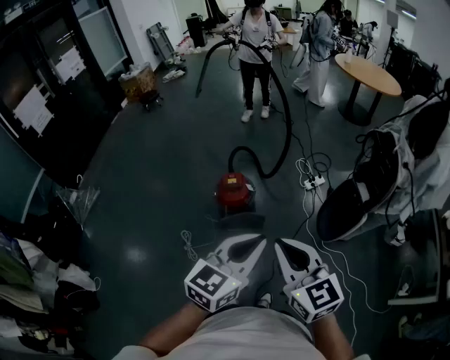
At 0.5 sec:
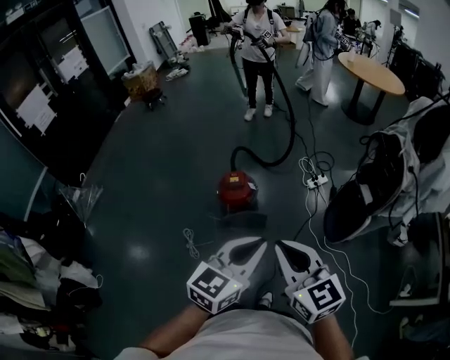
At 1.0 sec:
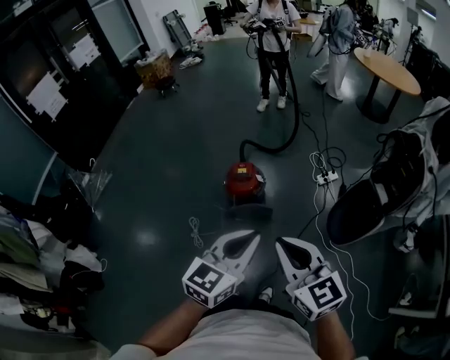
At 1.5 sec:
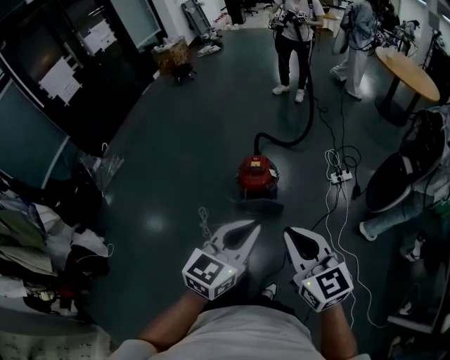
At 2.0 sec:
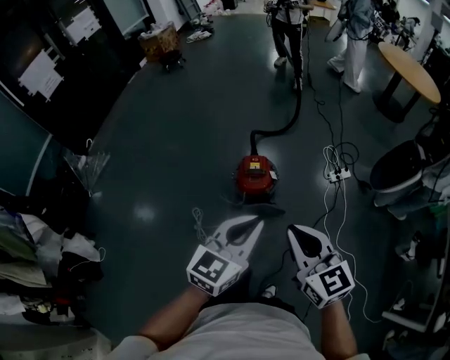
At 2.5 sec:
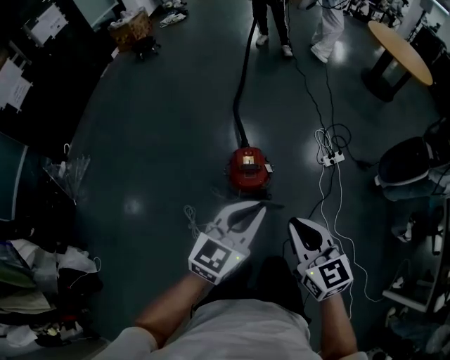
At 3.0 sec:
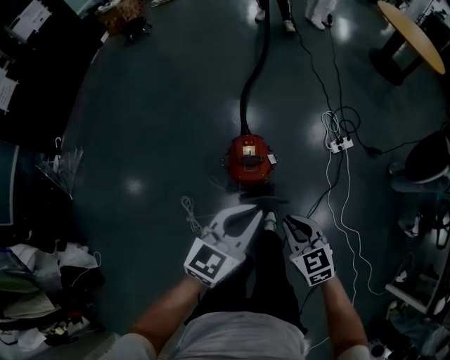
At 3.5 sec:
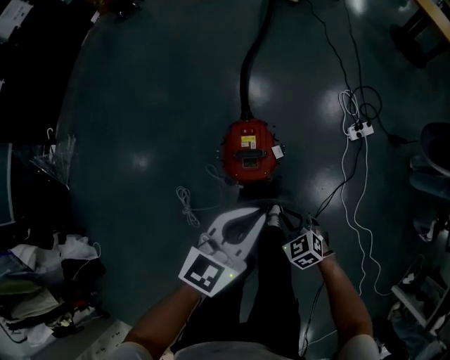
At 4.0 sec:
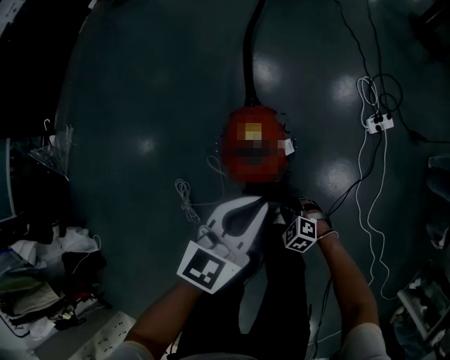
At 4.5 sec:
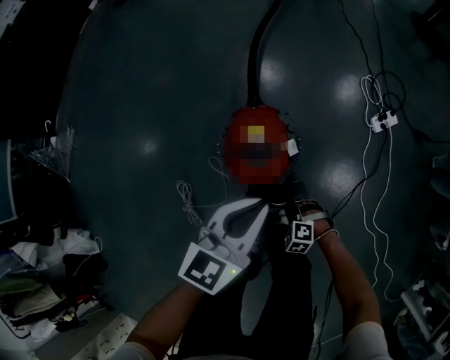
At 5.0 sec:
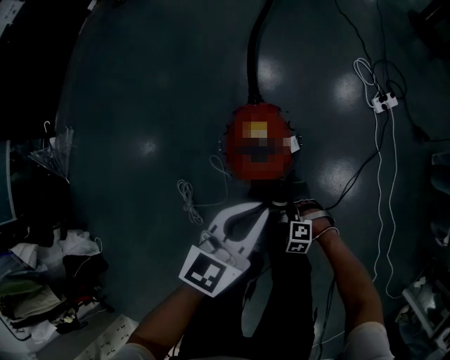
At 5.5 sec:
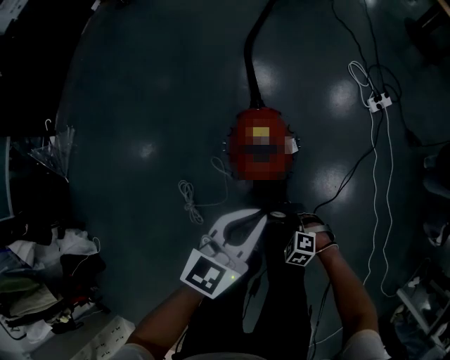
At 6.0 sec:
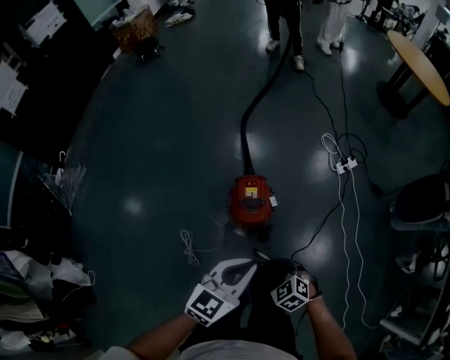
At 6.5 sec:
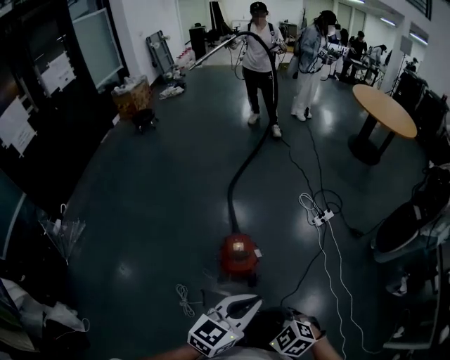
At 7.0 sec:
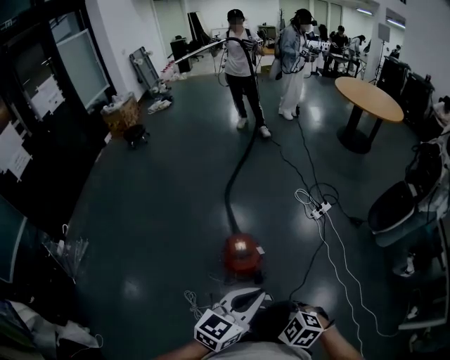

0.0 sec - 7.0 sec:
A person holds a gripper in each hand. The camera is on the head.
0.0 sec - 2.0 sec: The left gripper shifts some 20 cm forward, to the left and downward. The right gripper goes some 15 cm forward and downward.
2.0 sec - 3.5 sec: The two grippers go about 40 cm downward and forward. The right gripper angles its fingers downward, by approximately 40 degrees.
3.5 sec - 5.0 sec: The left gripper shifts some 15 cm downward, while the right gripper is displaced downward by roughly 25 cm, and turns by roughly 50 degrees.
5.0 sec - 7.0 sec: The right gripper shifts some 60 cm upward, and changes its angle by approximately 40 degrees. Meanwhile the left gripper heads upward, covering approximately 35 cm.

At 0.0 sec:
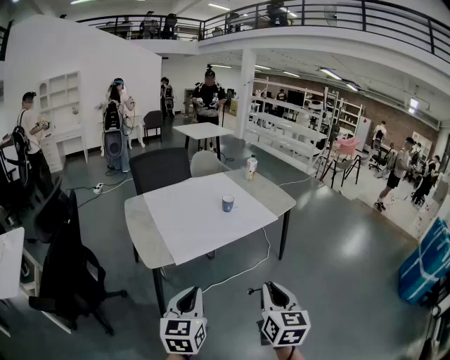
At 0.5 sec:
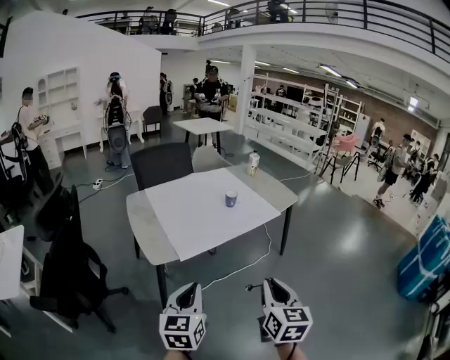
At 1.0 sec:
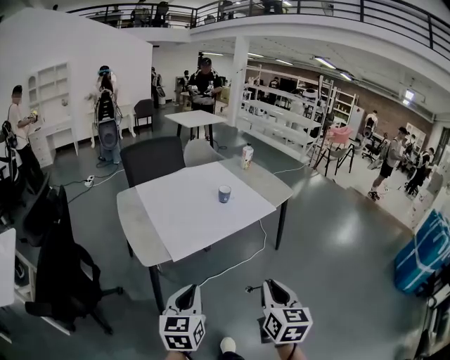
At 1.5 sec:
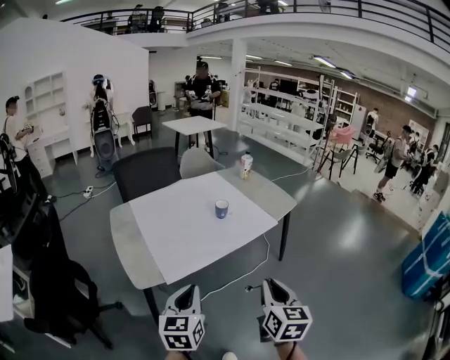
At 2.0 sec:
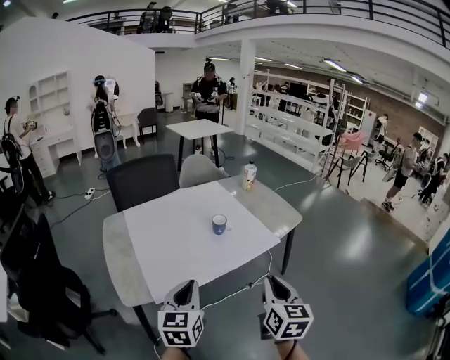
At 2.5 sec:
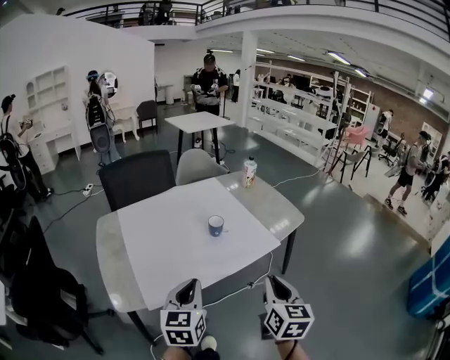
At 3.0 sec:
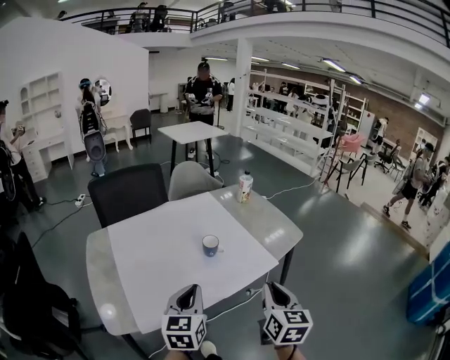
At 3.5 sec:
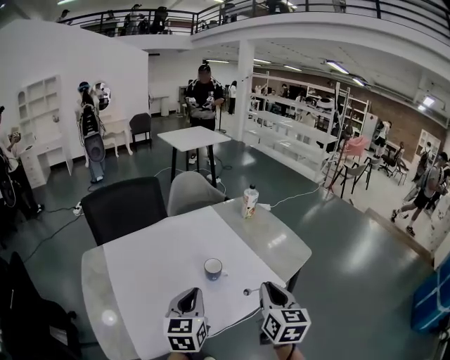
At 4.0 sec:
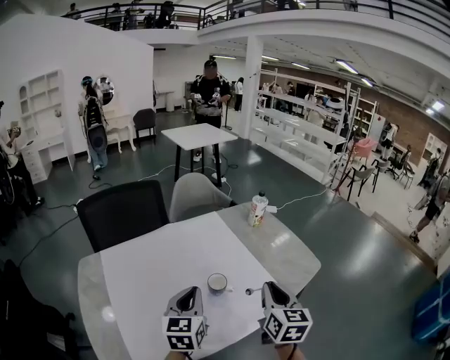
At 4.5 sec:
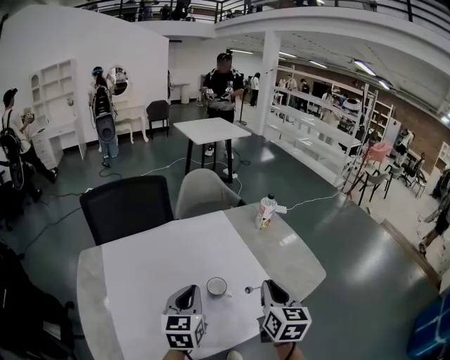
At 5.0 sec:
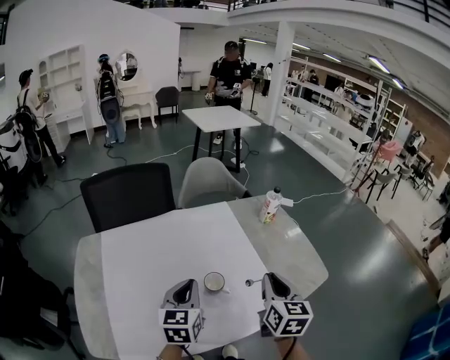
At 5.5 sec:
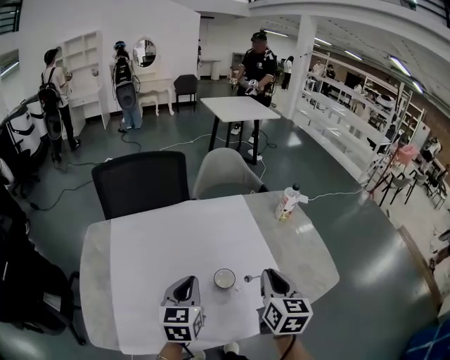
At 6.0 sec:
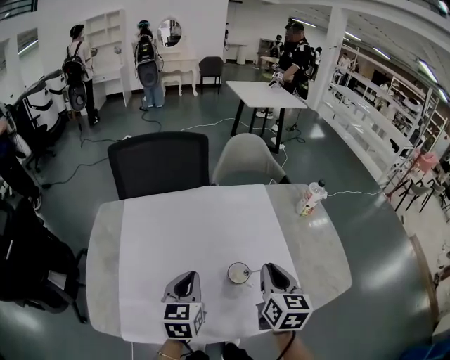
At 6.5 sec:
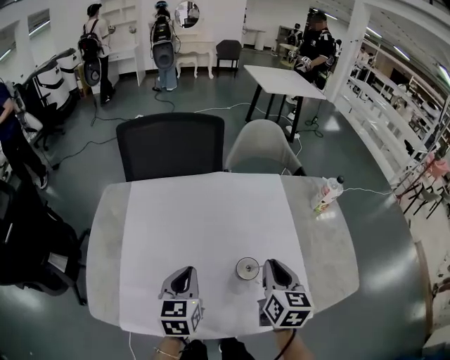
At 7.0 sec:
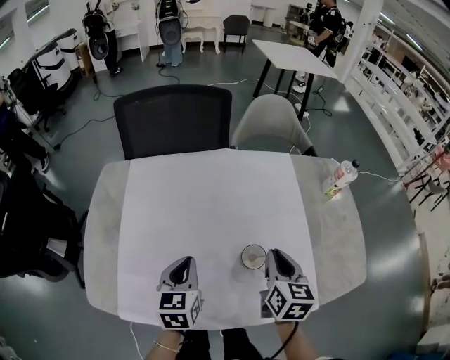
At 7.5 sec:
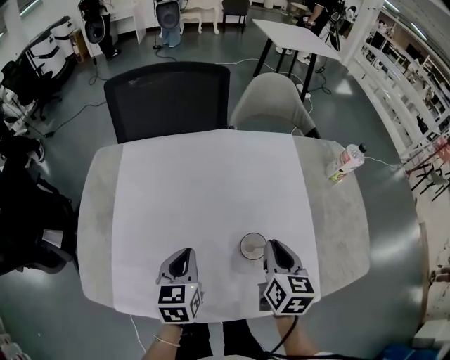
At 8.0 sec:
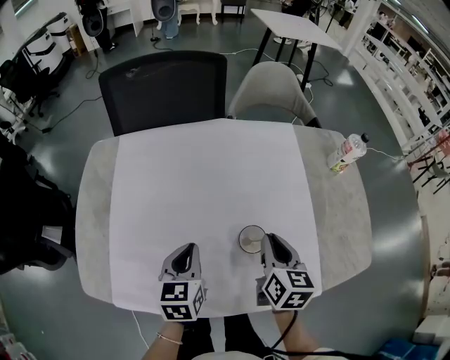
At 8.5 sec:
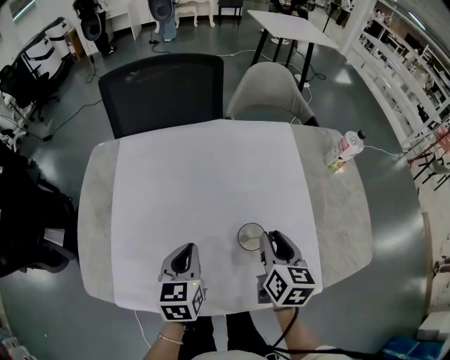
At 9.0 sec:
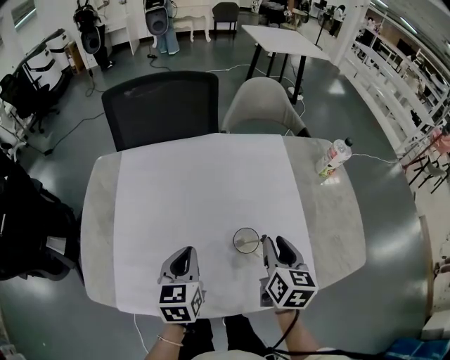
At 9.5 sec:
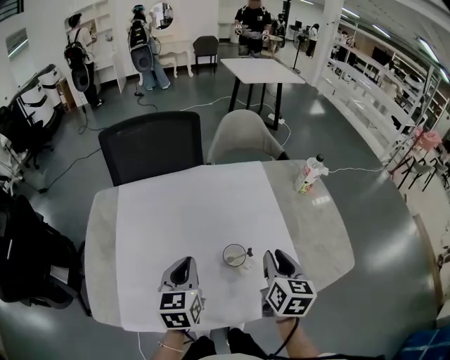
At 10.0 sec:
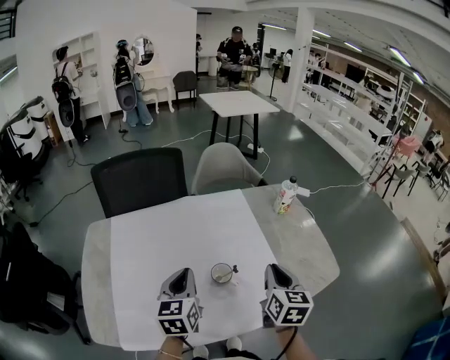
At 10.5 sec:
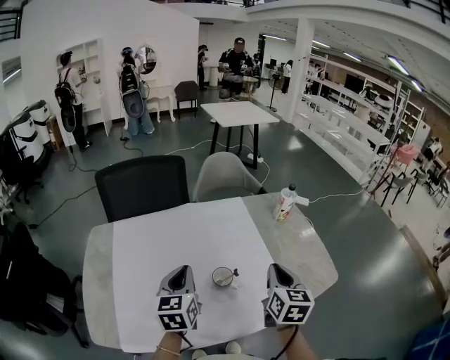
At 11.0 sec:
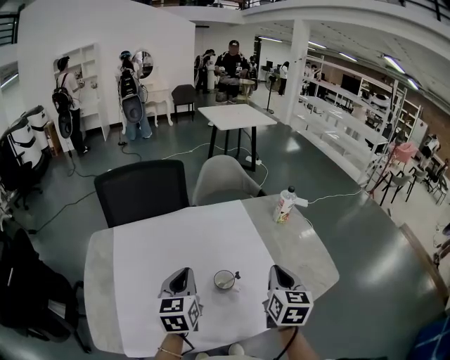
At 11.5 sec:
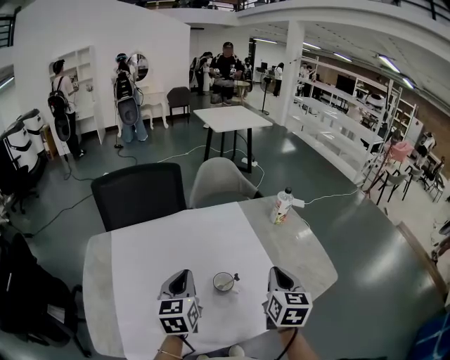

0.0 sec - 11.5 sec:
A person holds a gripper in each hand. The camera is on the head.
0.0 sec - 2.0 sec: The grippers both shift forward by roughly 25 cm.
2.0 sec - 4.0 sec: Both grippers move forward, about 30 cm.
4.0 sec - 6.0 sec: The left gripper is displaced downward and to the left by approximately 10 cm, and turns by about 20 degrees, while the right gripper moves forward, to the left and downward, approximately 15 cm, and swivels about 20 degrees.
6.0 sec - 7.5 sec: Both grippers travel together downward, about 10 cm.
7.5 sec - 9.5 sec: The right gripper travels to the right and upward by roughly 10 cm. The left gripper shifts some 10 cm upward.
9.5 sec - 11.5 sec: The left gripper moves roughly 5 cm. The right gripper is displaced upward by approximately 5 cm, and closes up.

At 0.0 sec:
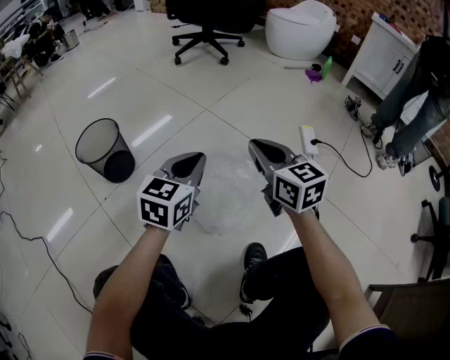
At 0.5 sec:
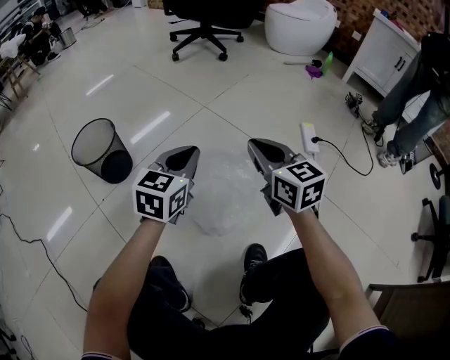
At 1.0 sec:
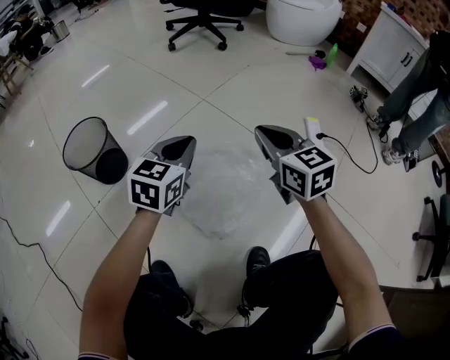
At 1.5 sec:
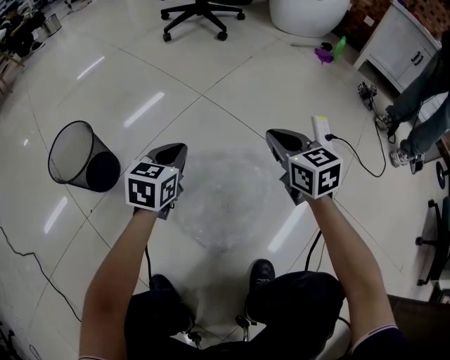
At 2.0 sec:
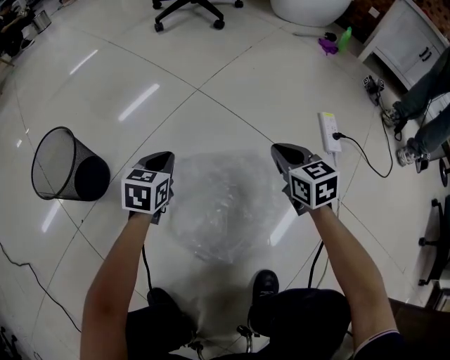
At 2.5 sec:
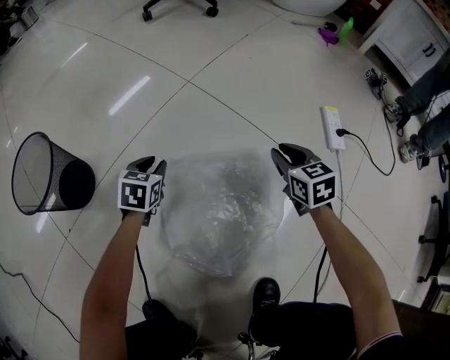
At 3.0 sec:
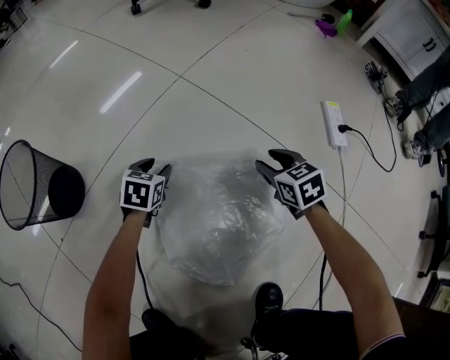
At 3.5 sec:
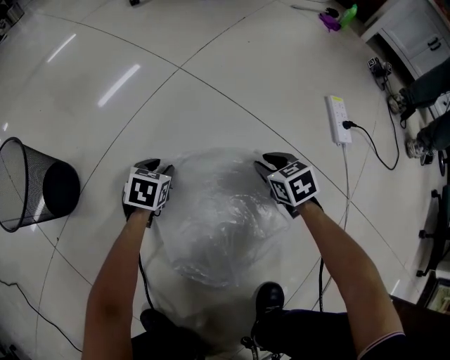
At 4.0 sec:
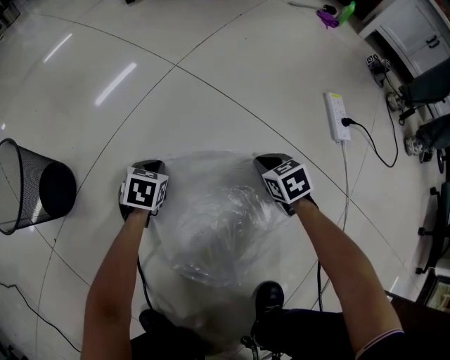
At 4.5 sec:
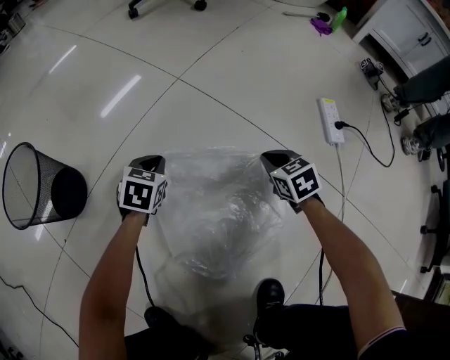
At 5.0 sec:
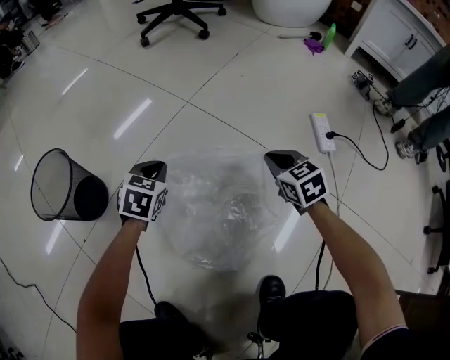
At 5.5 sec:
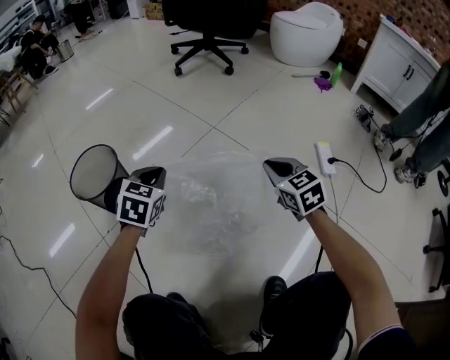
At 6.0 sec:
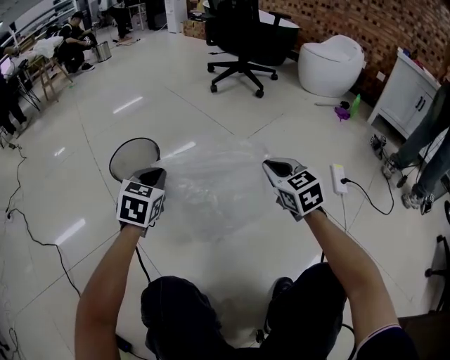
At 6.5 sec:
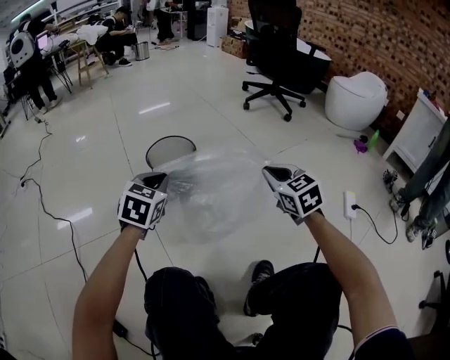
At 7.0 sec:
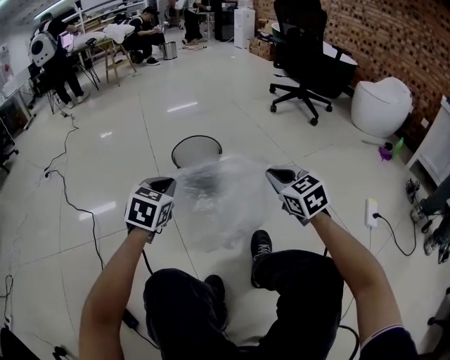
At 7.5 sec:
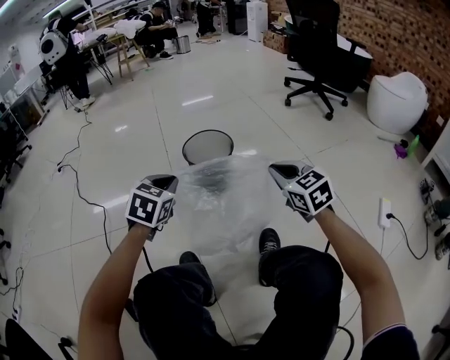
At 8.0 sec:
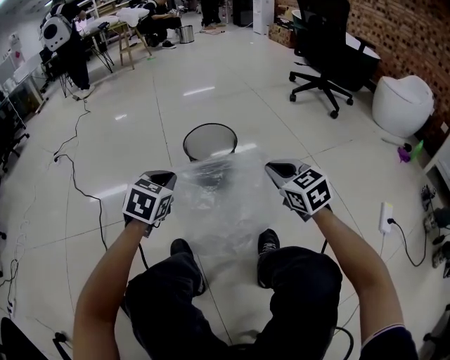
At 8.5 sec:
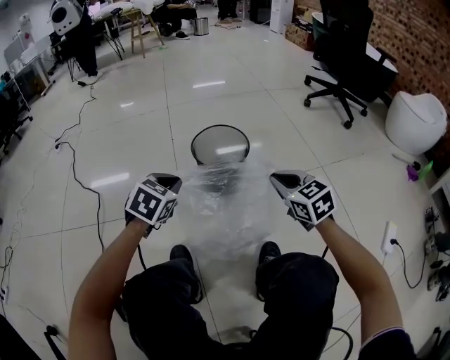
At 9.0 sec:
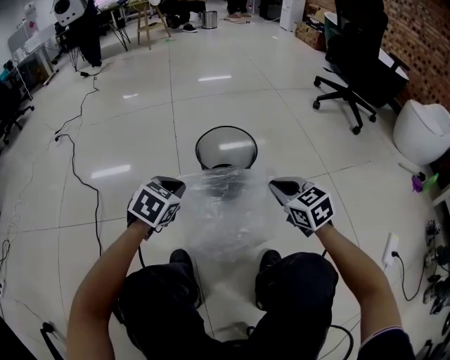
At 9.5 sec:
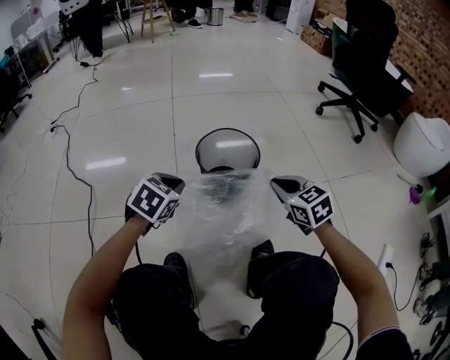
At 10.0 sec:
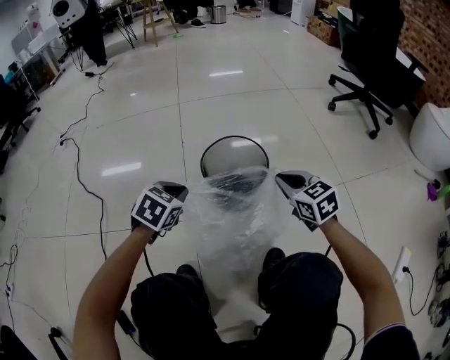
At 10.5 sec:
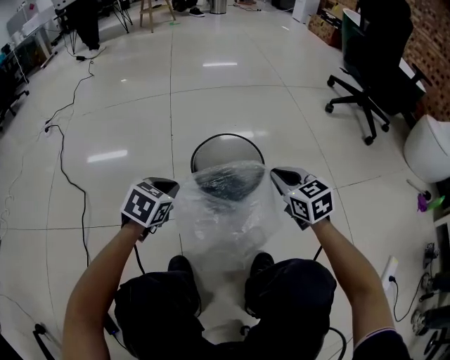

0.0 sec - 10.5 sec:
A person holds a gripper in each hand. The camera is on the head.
0.0 sec - 2.0 sec: The two grippers go some 30 cm downward and forward. The left gripper rotates approximately 20 degrees. Meanwhile the right gripper rotates some 20 degrees.
2.0 sec - 4.0 sec: Both grippers move downward, approximately 20 cm. The right gripper swivels some 20 degrees, and opens and closes again; the left gripper opens and closes again.
4.0 sec - 6.5 sec: The right gripper travels upward and to the left by some 50 cm, and tips its fingers upward by approximately 30 degrees, while the left gripper heads upward, to the left and backward, covering approximately 60 cm, and rotates roughly 40 degrees.
6.5 sec - 8.5 sec: The right gripper moves to the left, forward and downward, approximately 15 cm, and swivels some 20 degrees, while the left gripper is displaced to the left and downward by some 10 cm.
8.5 sec - 10.5 sec: The right gripper shifts approximately 15 cm forward, while the left gripper travels forward and downward by about 15 cm.
